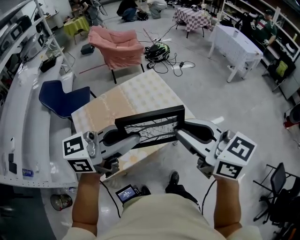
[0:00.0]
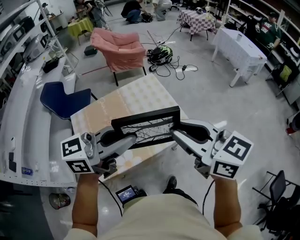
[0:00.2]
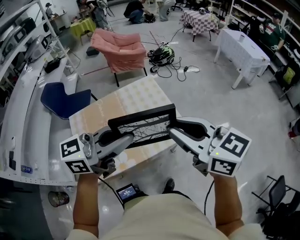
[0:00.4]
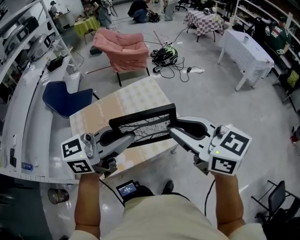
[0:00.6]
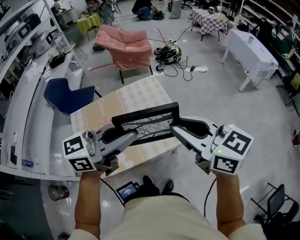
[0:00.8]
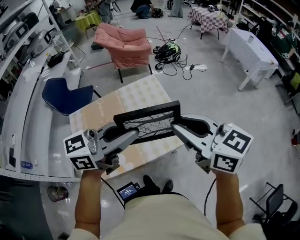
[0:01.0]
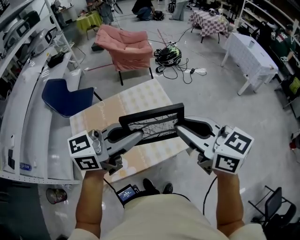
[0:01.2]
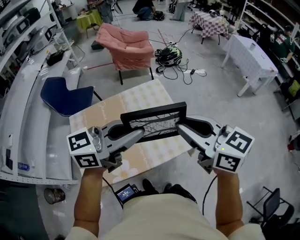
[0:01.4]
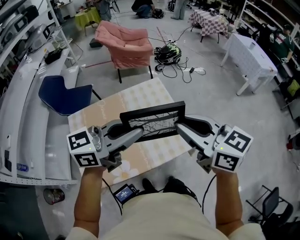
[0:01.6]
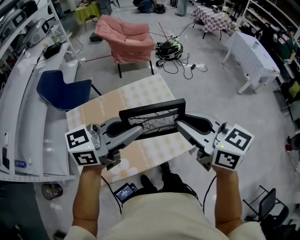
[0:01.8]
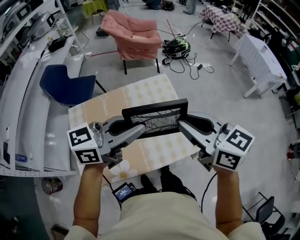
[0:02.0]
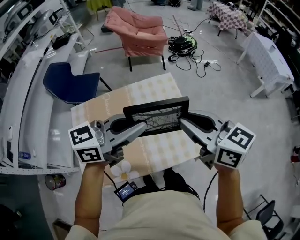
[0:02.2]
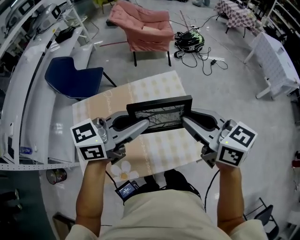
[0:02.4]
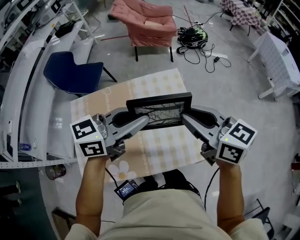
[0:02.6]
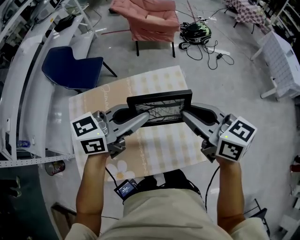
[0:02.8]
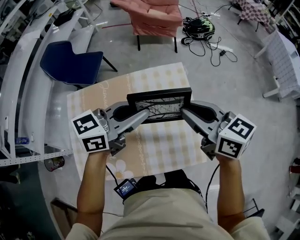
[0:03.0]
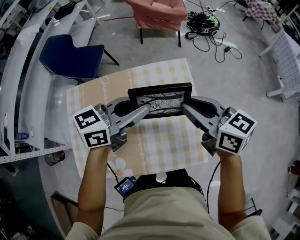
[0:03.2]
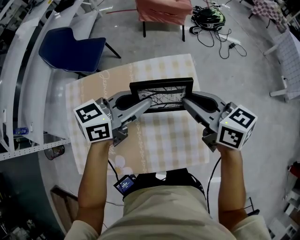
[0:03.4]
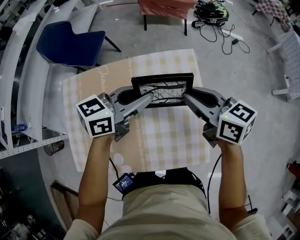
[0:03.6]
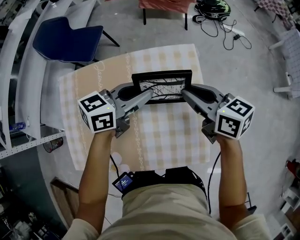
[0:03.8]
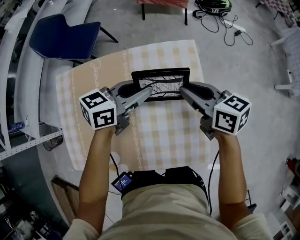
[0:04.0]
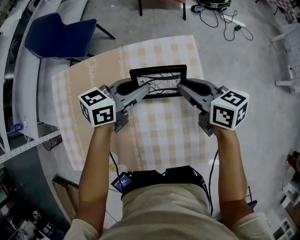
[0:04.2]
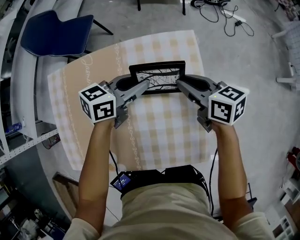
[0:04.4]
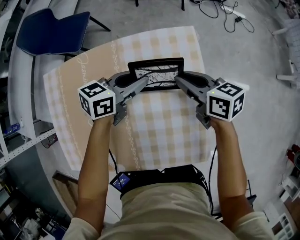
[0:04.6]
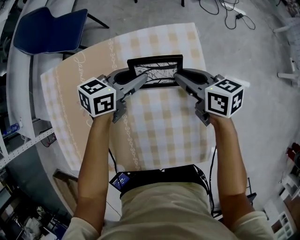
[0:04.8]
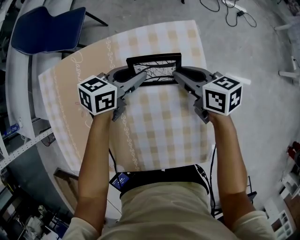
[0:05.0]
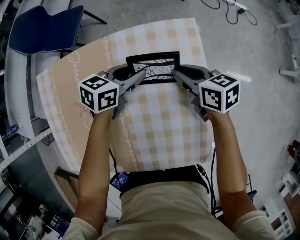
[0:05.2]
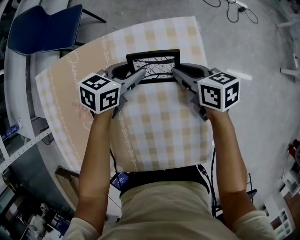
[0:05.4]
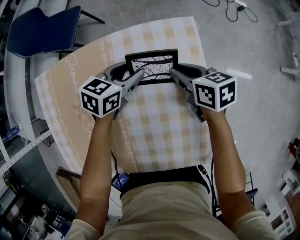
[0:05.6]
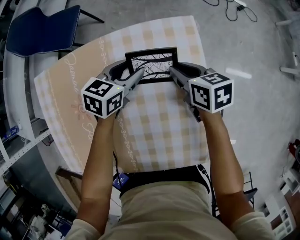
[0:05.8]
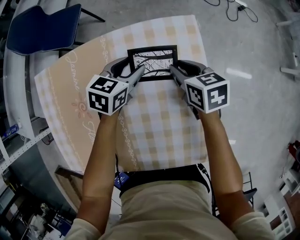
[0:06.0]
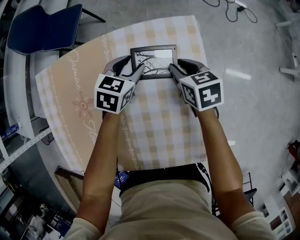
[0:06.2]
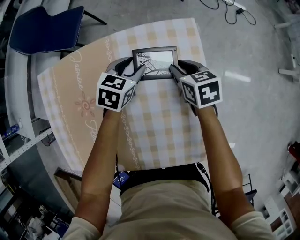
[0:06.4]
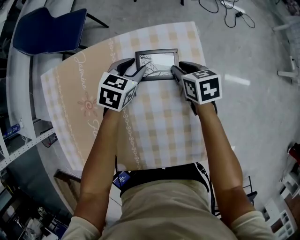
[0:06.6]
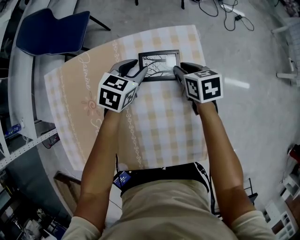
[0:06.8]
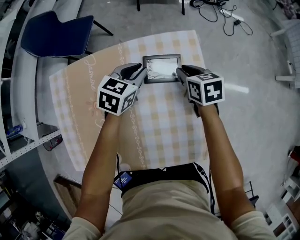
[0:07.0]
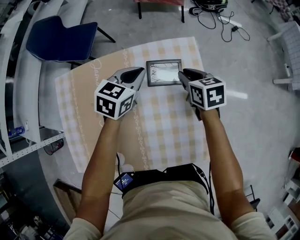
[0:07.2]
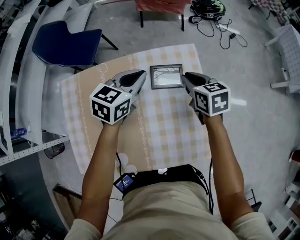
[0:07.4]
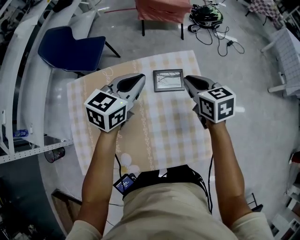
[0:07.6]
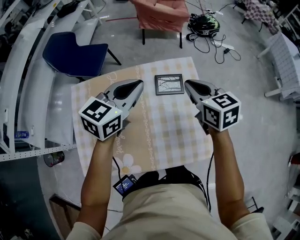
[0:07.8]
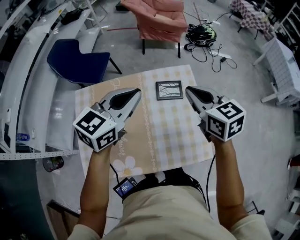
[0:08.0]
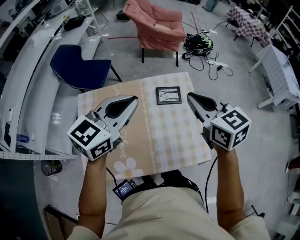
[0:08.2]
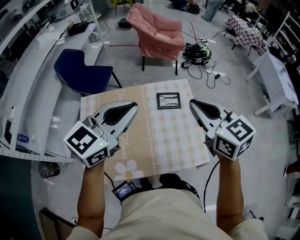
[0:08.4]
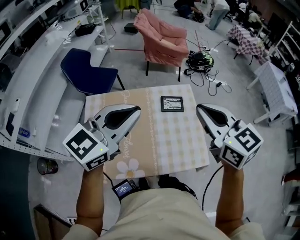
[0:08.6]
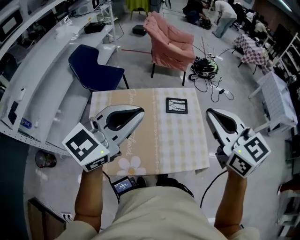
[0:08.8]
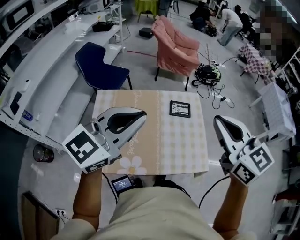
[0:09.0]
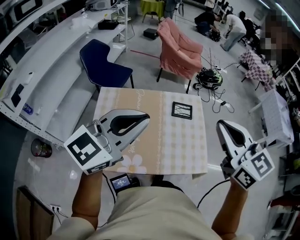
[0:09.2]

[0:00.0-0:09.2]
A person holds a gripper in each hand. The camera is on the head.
0:00.0 to 0:01.6: Both grippers travel together forward, about 15 cm.
0:01.6 to 0:03.0: Both grippers travel together forward and downward, about 25 cm. The left gripper swivels some 20 degrees.
0:03.0 to 0:04.6: The two grippers go about 25 cm downward and forward.
0:04.6 to 0:06.2: The right gripper shifts approximately 15 cm downward, and changes its angle by roughly 20 degrees. The left gripper goes roughly 15 cm downward and forward, turns by approximately 30 degrees, and opens.
0:06.2 to 0:07.6: Both grippers move upward, roughly 25 cm. The left gripper turns by some 20 degrees, and closes its fingers.
0:07.6 to 0:09.2: The left gripper travels backward, upward and to the left by some 40 cm, and turns by approximately 30 degrees; the right gripper is displaced upward and backward by roughly 40 cm, and turns by some 30 degrees.

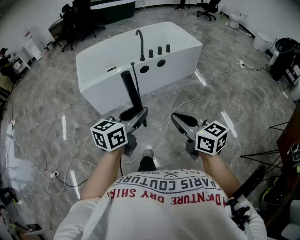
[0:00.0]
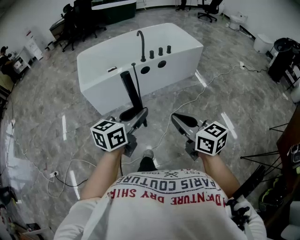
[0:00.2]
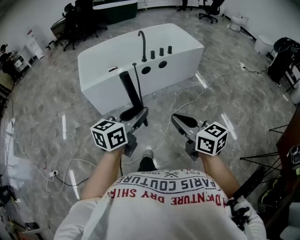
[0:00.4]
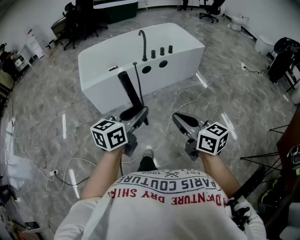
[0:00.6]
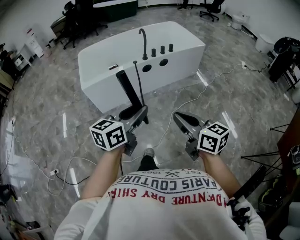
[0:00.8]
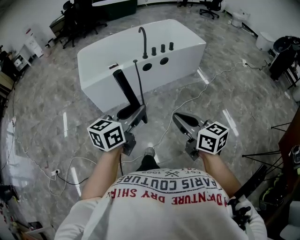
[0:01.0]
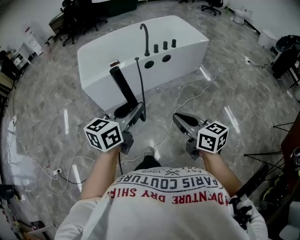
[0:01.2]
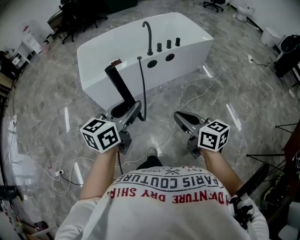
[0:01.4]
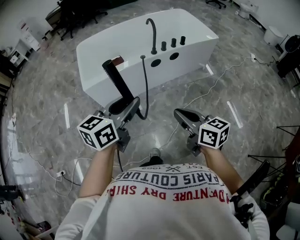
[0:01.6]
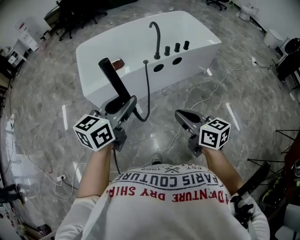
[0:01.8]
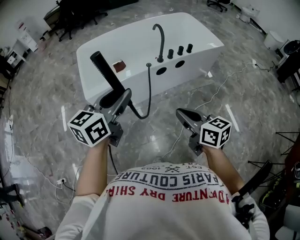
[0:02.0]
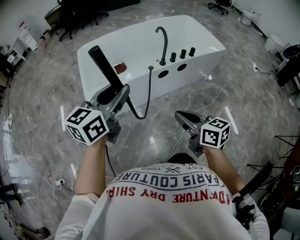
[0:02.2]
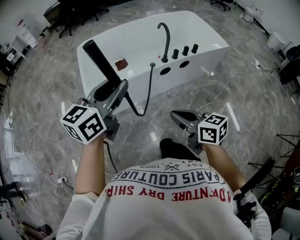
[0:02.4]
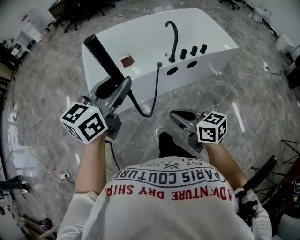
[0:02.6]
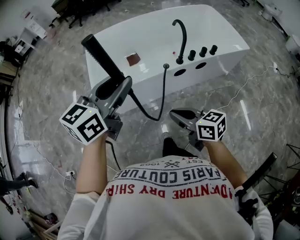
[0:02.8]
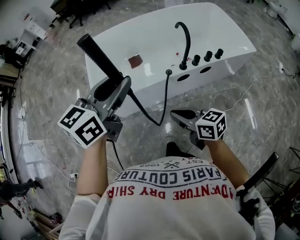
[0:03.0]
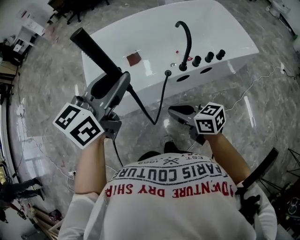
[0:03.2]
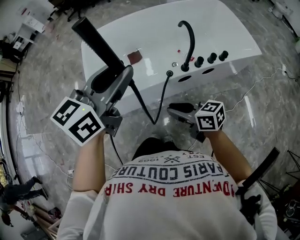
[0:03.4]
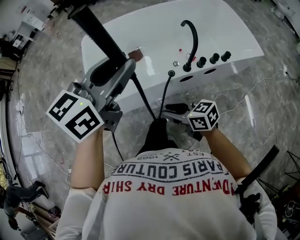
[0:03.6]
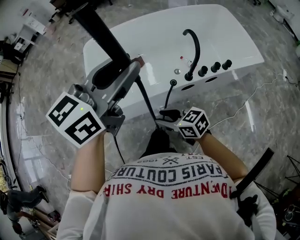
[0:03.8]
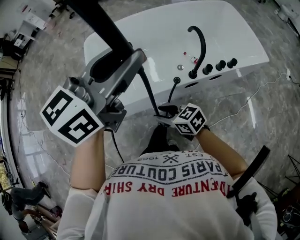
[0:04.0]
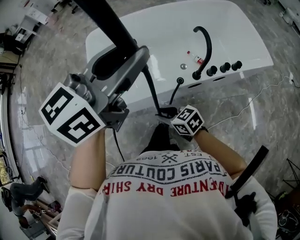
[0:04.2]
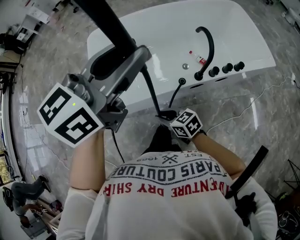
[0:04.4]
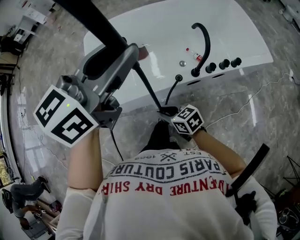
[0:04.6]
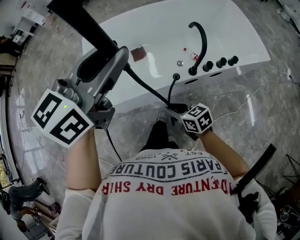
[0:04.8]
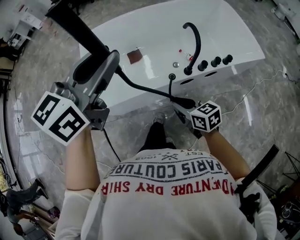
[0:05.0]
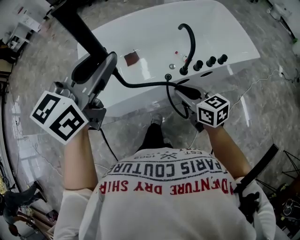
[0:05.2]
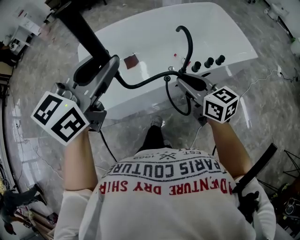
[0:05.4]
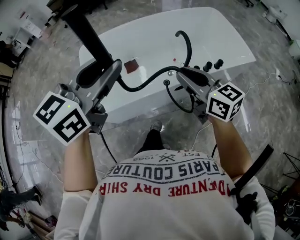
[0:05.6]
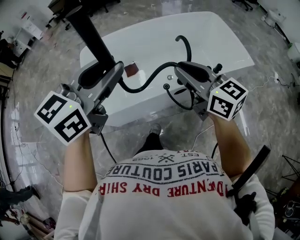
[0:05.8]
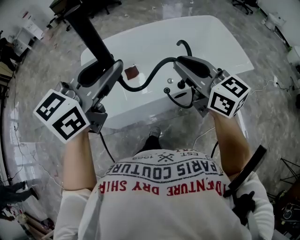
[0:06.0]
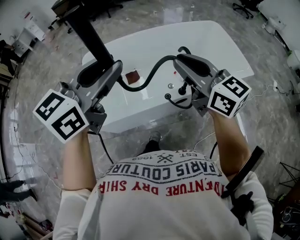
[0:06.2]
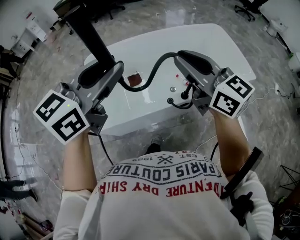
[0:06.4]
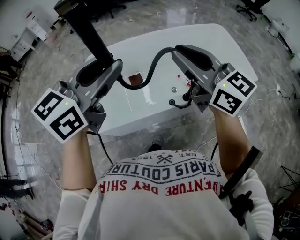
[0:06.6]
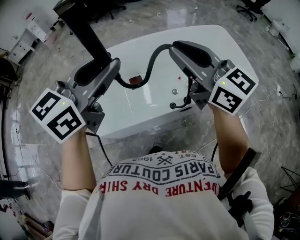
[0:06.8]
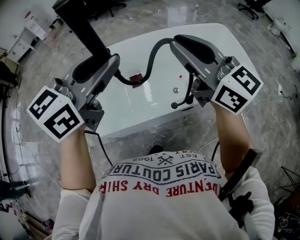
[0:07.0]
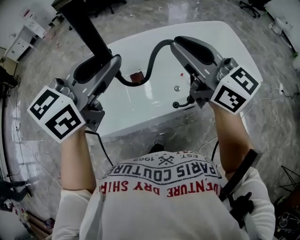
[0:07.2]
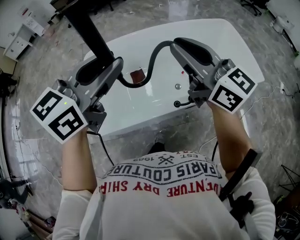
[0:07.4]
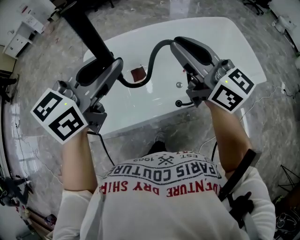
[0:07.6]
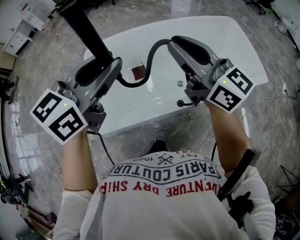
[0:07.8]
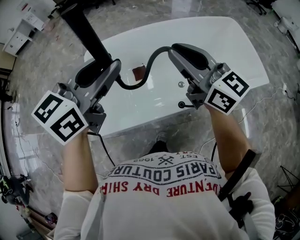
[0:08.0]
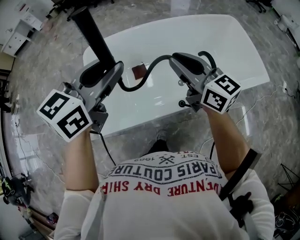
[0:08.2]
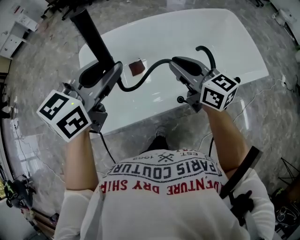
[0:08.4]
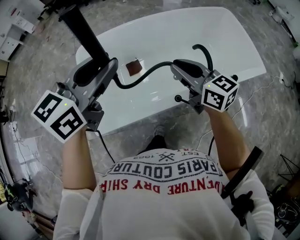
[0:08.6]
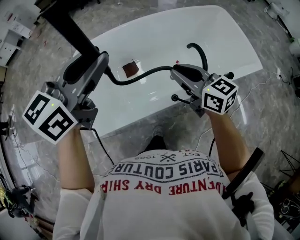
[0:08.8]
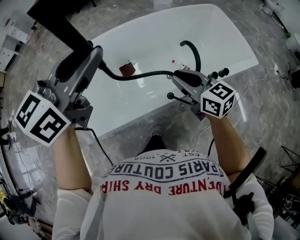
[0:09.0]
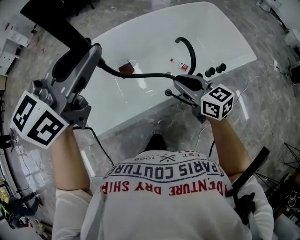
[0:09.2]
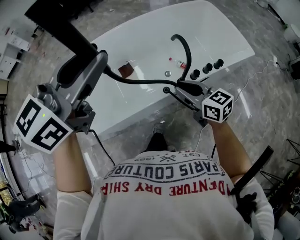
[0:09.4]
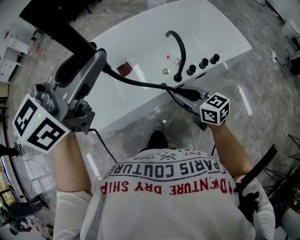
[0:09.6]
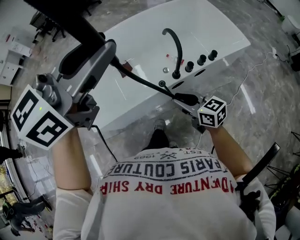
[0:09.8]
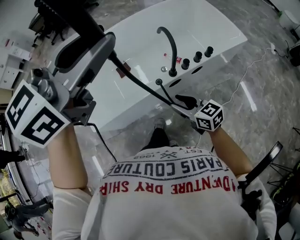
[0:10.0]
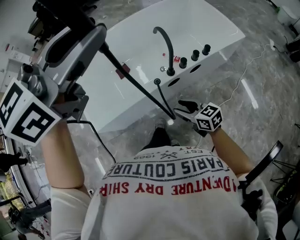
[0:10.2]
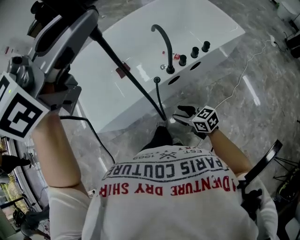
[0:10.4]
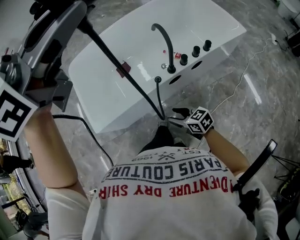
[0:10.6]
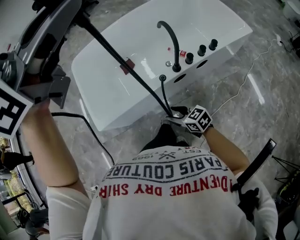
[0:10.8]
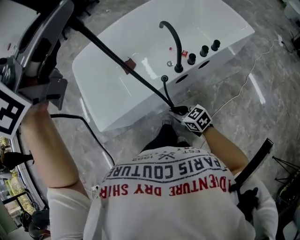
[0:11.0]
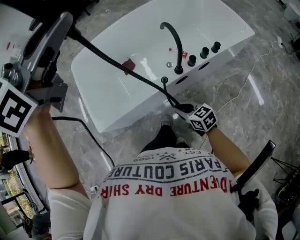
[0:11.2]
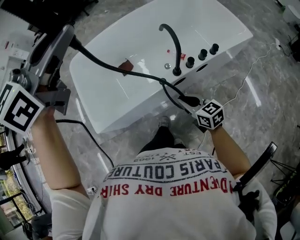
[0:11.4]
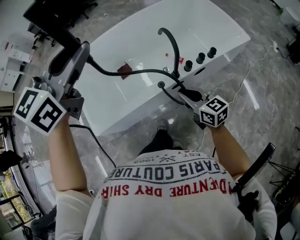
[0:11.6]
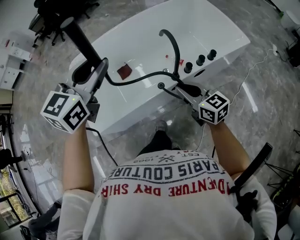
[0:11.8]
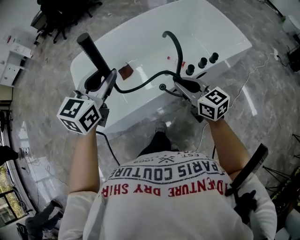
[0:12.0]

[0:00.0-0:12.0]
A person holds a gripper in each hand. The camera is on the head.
0:00.0 to 0:01.6: The left gripper goes some 15 cm forward and to the left. Meanwhile the right gripper travels forward, to the left and downward by about 15 cm.
0:01.6 to 0:03.0: The grippers both shift forward by some 30 cm. The right gripper rotates some 20 degrees.
0:03.0 to 0:04.4: The left gripper heads forward and upward, covering about 15 cm, while the right gripper moves downward, forward and to the left, about 20 cm, and opens, then closes again.
0:04.4 to 0:06.0: The right gripper travels upward and to the right by roughly 35 cm, and turns by some 40 degrees, while the left gripper shifts by about 5 cm.
0:06.0 to 0:07.6: The left gripper moves forward, some 10 cm. The right gripper is displaced forward and to the left by approximately 15 cm.
0:07.6 to 0:09.0: The right gripper is displaced downward by some 20 cm, and changes its angle by roughly 30 degrees.
0:09.0 to 0:10.4: The left gripper goes some 20 cm to the right, upward and backward, and rotates approximately 20 degrees; the right gripper is displaced backward and downward by approximately 30 cm, and opens its fingers.
0:10.4 to 0:12.0: The right gripper is displaced forward and upward by roughly 20 cm, changes its angle by some 20 degrees, and closes up. The left gripper shifts approximately 25 cm downward and to the left, and rotates about 20 degrees.

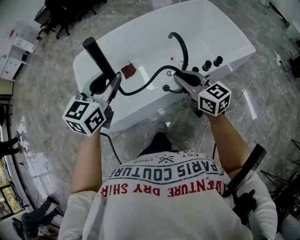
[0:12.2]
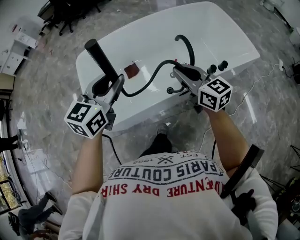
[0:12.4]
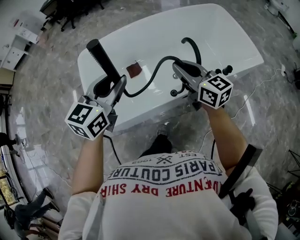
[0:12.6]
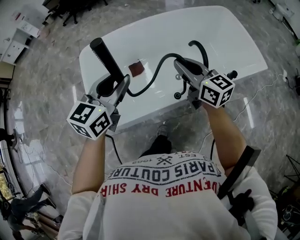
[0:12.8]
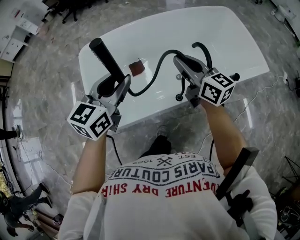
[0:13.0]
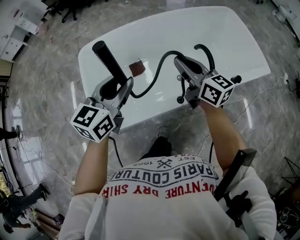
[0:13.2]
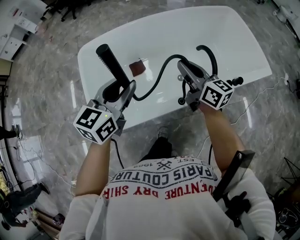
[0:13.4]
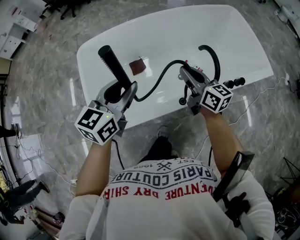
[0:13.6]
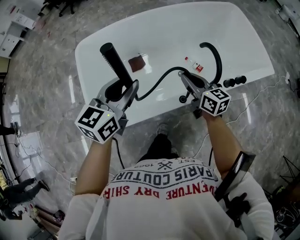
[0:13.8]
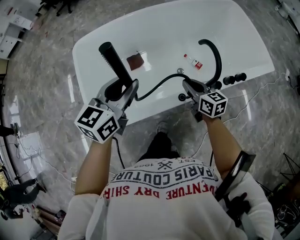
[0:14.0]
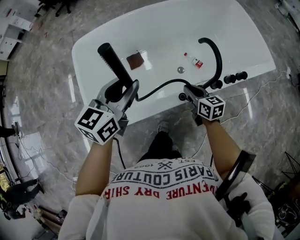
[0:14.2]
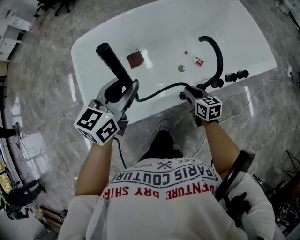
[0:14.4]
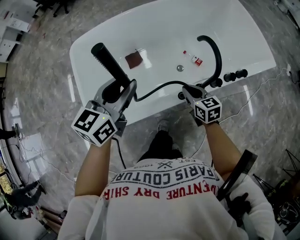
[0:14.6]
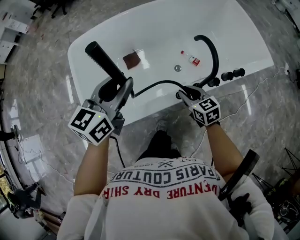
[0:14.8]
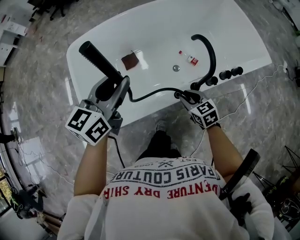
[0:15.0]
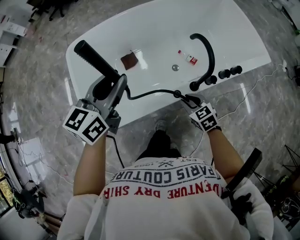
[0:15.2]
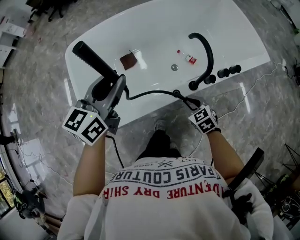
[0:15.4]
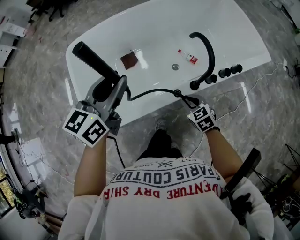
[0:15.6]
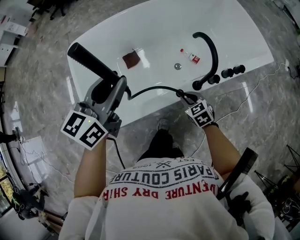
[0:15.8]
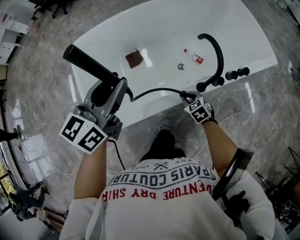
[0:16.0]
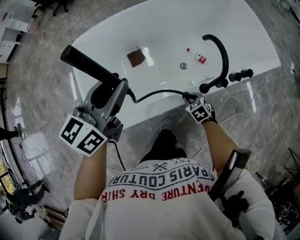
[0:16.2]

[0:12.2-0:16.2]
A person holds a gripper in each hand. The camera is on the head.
0:12.2 to 0:13.6: The left gripper travels downward and forward by roughly 10 cm, while the right gripper travels forward and downward by about 15 cm.
0:13.6 to 0:14.8: The right gripper shifts roughly 15 cm downward and backward, and turns by approximately 30 degrees.
0:14.8 to 0:16.2: The right gripper heads downward, covering roughly 15 cm, and swivels about 30 degrees.
